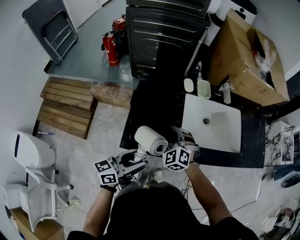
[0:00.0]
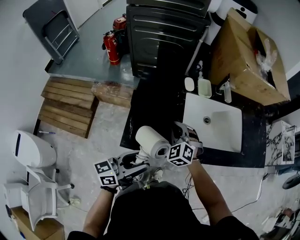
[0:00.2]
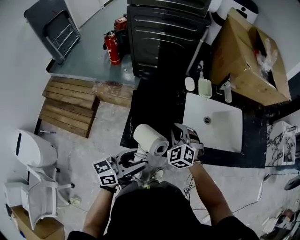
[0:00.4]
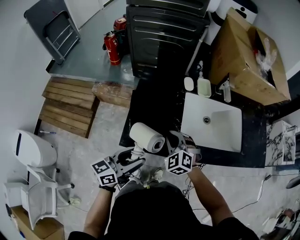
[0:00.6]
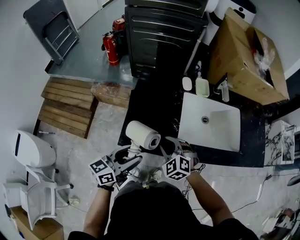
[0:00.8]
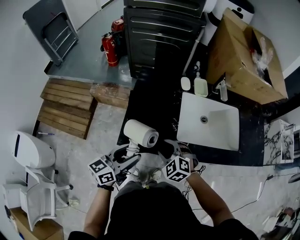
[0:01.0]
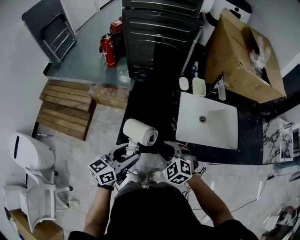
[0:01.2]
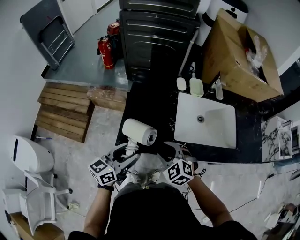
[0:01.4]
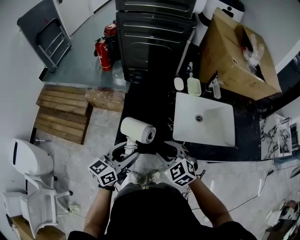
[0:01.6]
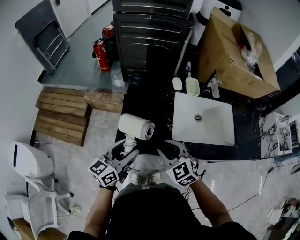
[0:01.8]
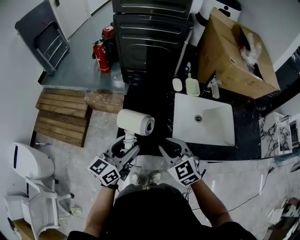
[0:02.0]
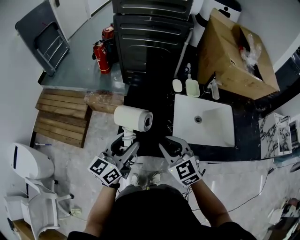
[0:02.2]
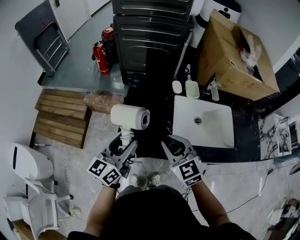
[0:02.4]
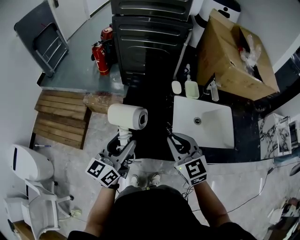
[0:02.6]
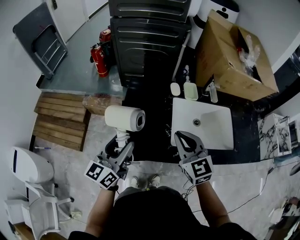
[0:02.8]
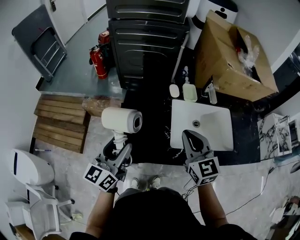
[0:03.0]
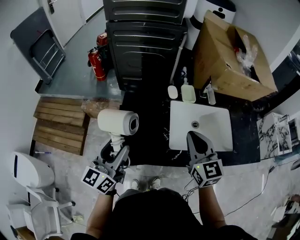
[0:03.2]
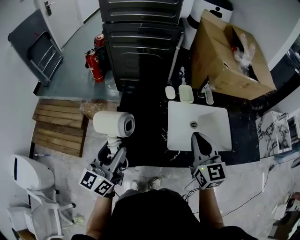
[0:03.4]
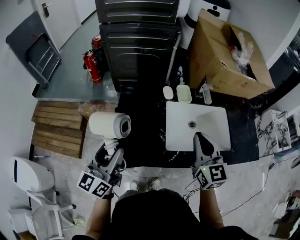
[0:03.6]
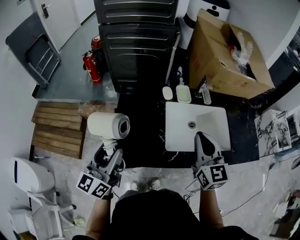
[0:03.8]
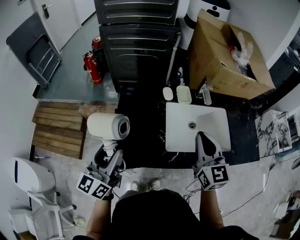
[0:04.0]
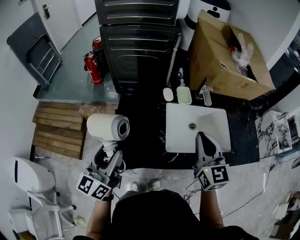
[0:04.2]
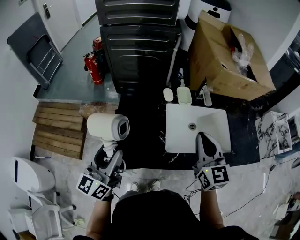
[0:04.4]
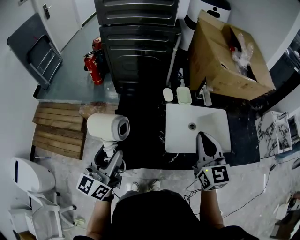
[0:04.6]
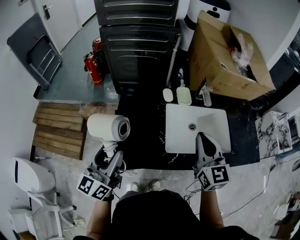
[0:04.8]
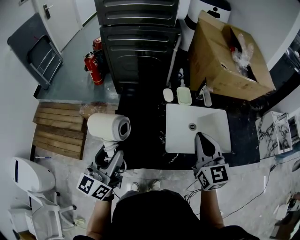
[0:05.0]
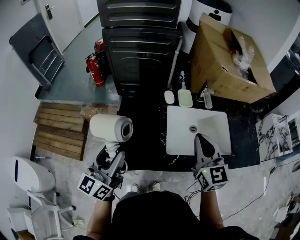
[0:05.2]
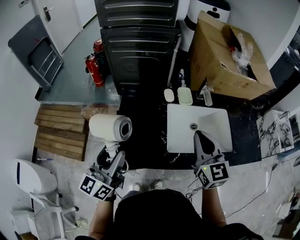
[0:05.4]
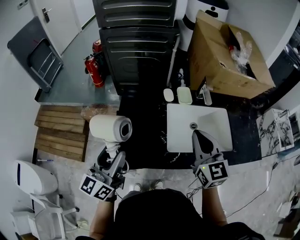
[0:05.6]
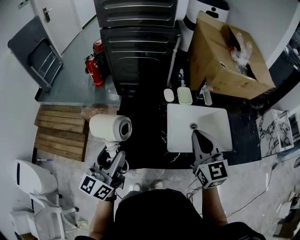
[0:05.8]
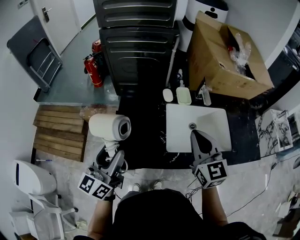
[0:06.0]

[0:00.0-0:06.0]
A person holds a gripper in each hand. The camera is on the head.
0:00.0 to 0:01.6: The right gripper travels backward by roughly 10 cm, rotates about 20 degrees, and opens its fingers.
0:01.6 to 0:03.0: The right gripper heads upward, to the right and forward, covering some 20 cm, changes its angle by approximately 40 degrees, and closes its fingers. The left gripper is displaced upward and forward by some 10 cm.
0:03.0 to 0:04.4: The right gripper heads to the right, covering about 10 cm.
0:04.4 to 0:06.0: The grippers stay close to where they were, moving slightly.

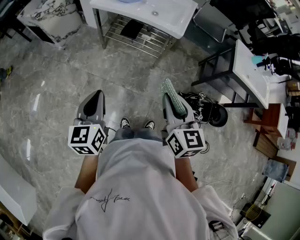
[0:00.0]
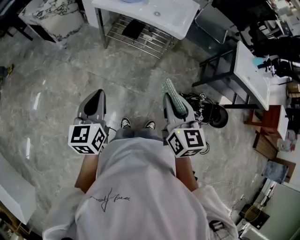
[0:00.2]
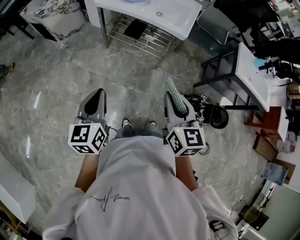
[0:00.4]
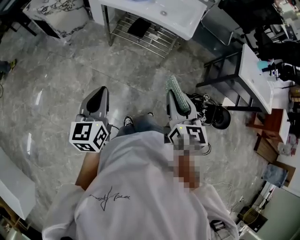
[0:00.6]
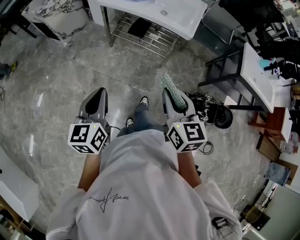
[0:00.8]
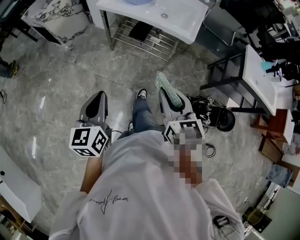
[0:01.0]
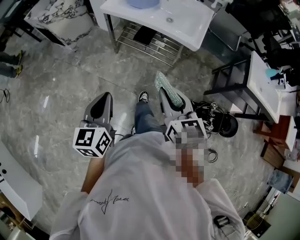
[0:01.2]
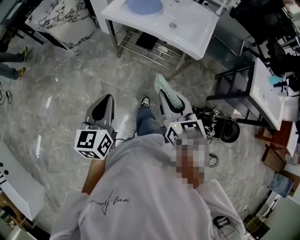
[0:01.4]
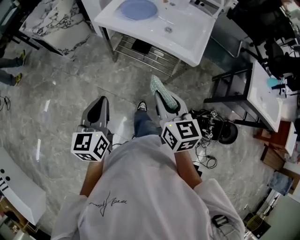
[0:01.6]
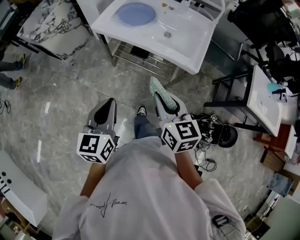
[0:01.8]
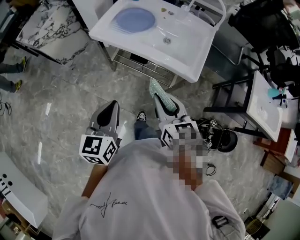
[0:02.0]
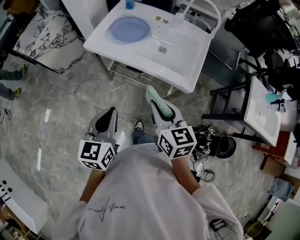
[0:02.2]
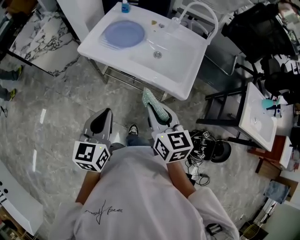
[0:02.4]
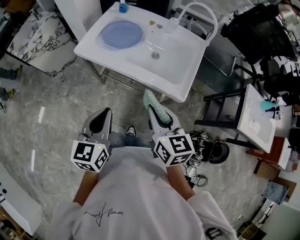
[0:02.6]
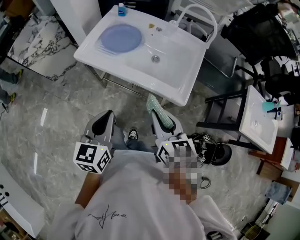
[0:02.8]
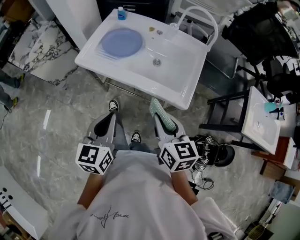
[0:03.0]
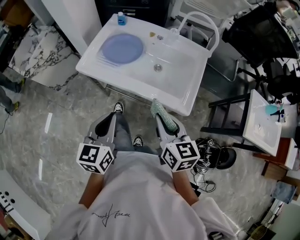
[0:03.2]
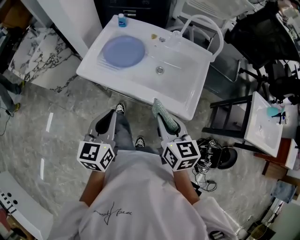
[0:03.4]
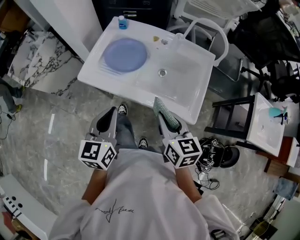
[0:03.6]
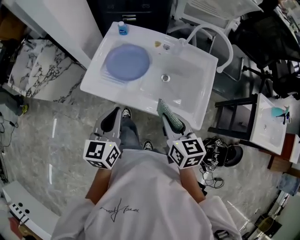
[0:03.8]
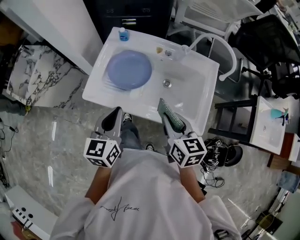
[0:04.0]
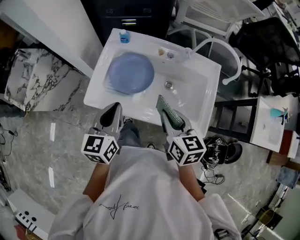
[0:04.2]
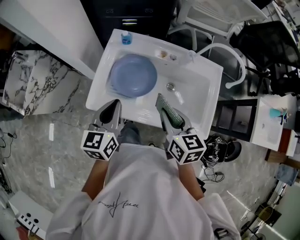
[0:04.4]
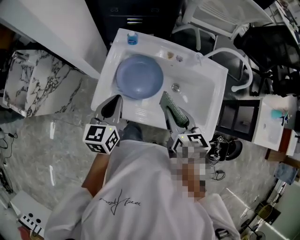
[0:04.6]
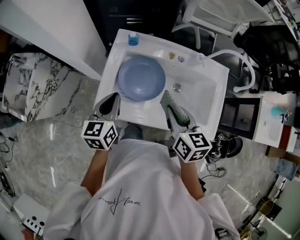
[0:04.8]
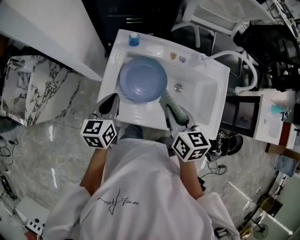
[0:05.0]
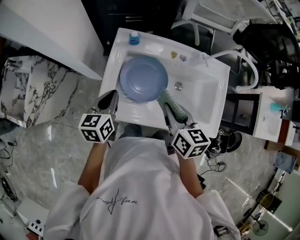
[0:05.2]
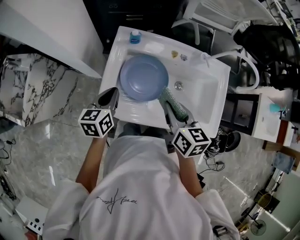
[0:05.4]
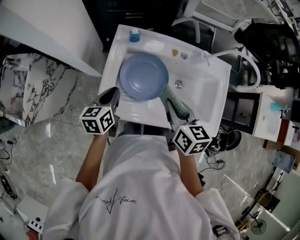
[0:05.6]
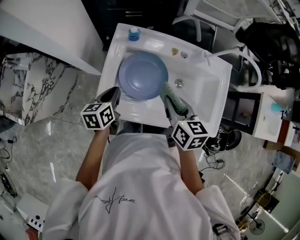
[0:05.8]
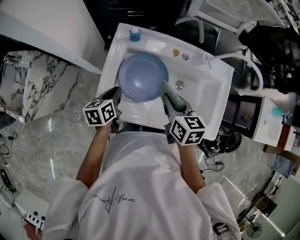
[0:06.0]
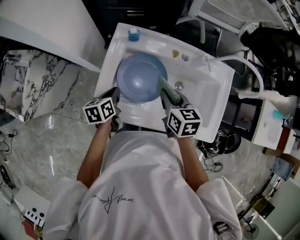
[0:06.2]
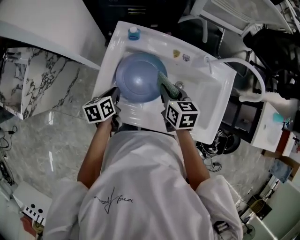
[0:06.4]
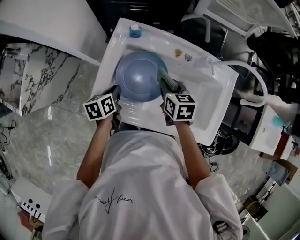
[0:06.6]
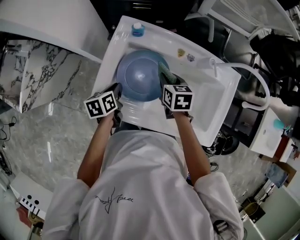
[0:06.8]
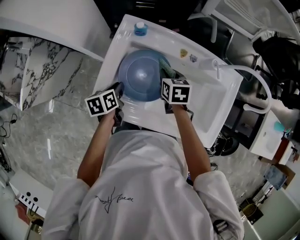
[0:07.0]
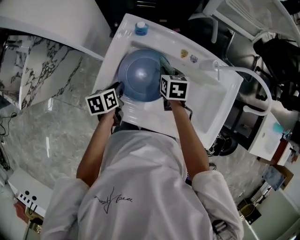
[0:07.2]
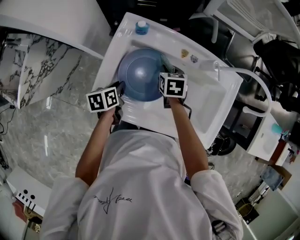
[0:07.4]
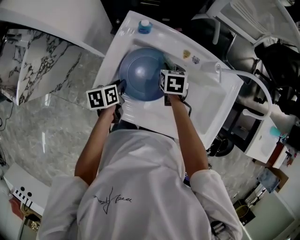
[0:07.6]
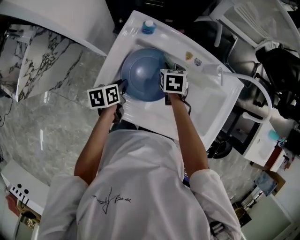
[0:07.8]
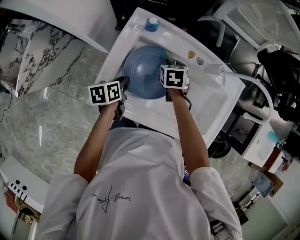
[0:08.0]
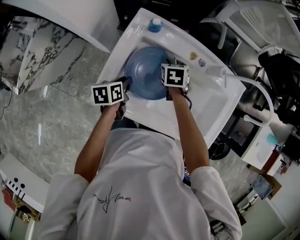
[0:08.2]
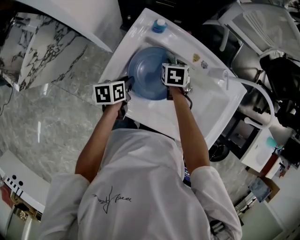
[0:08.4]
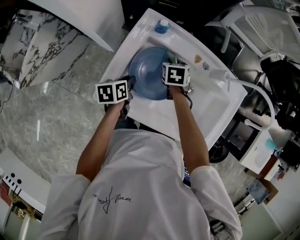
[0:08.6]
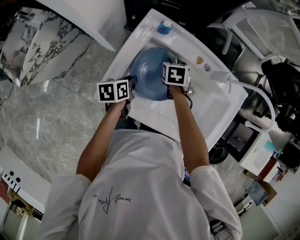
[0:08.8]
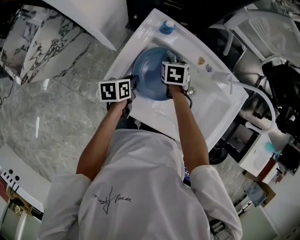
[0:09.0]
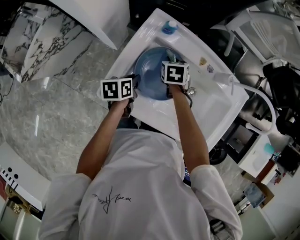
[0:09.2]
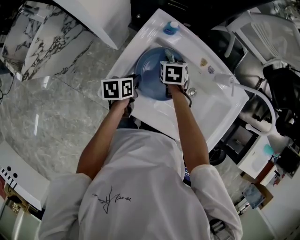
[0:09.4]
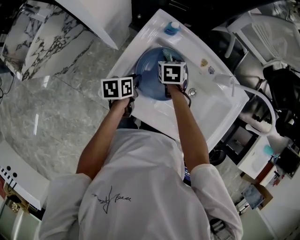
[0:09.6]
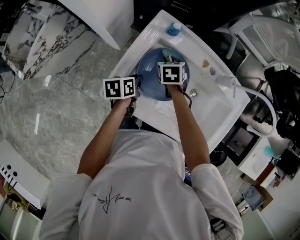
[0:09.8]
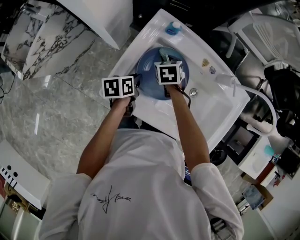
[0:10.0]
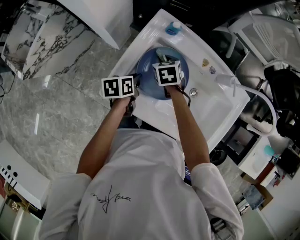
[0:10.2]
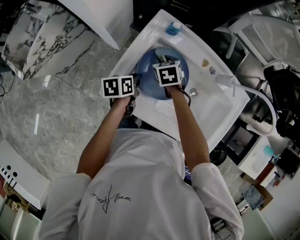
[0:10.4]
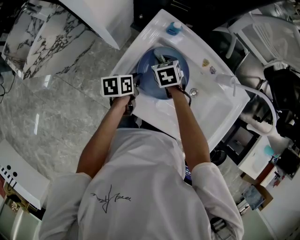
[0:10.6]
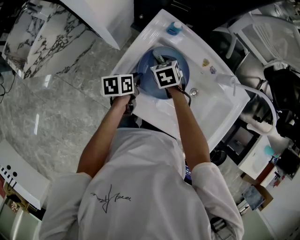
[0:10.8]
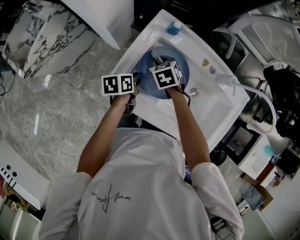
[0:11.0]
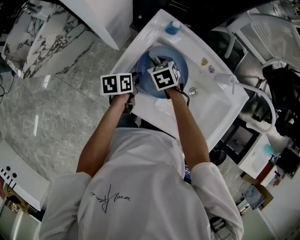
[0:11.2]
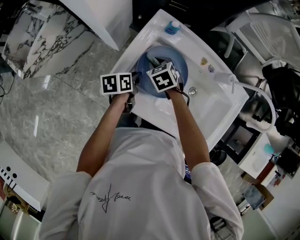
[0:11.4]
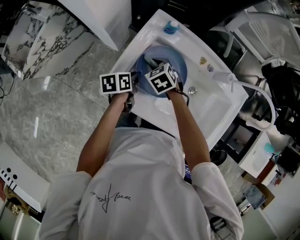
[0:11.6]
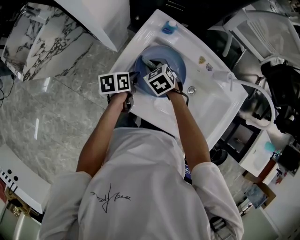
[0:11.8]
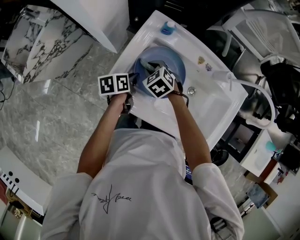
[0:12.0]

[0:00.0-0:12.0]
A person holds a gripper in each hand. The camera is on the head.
0:00.0 to 0:01.6: The grippers both shift forward by approximately 20 cm.
0:01.6 to 0:03.0: The grippers both shift forward and to the right by some 20 cm.
0:03.0 to 0:04.4: The right gripper goes roughly 25 cm forward and to the left. Meanwhile the left gripper moves forward, roughly 30 cm.
0:04.4 to 0:06.0: The left gripper shifts roughly 20 cm downward, forward and to the left, and swivels roughly 30 degrees, while the right gripper shifts some 10 cm forward and downward.
0:06.0 to 0:07.6: The left gripper goes approximately 5 cm downward, while the right gripper is displaced downward and forward by about 20 cm, and swivels about 30 degrees.
0:07.6 to 0:09.0: The right gripper is displaced to the left by approximately 5 cm.
0:09.0 to 0:10.4: The right gripper is displaced to the left by about 5 cm.
0:10.4 to 0:12.0: The right gripper travels backward by roughly 5 cm, and changes its angle by roughly 20 degrees.

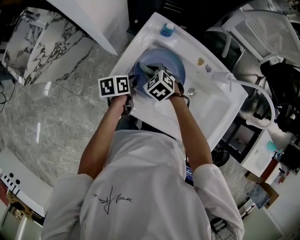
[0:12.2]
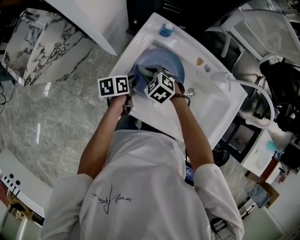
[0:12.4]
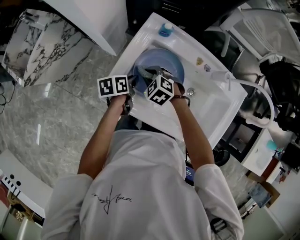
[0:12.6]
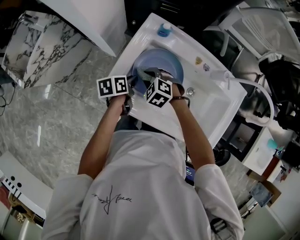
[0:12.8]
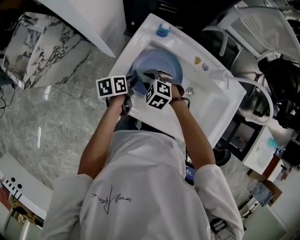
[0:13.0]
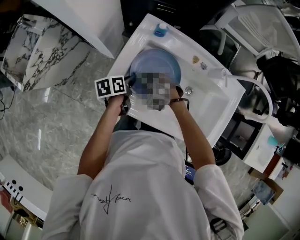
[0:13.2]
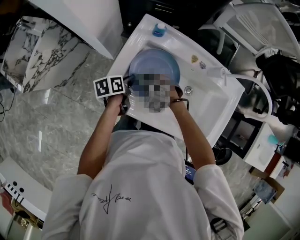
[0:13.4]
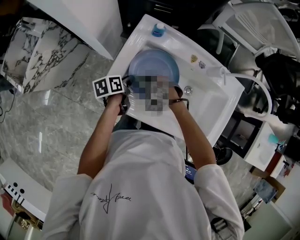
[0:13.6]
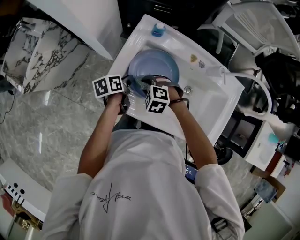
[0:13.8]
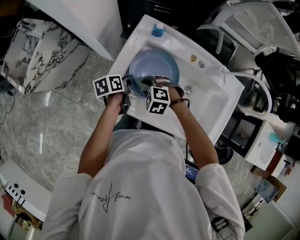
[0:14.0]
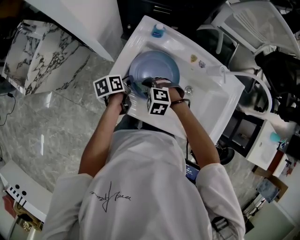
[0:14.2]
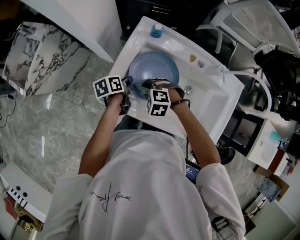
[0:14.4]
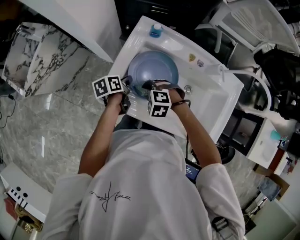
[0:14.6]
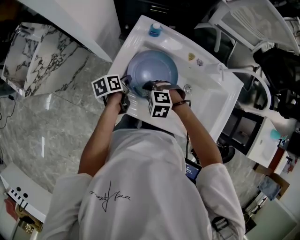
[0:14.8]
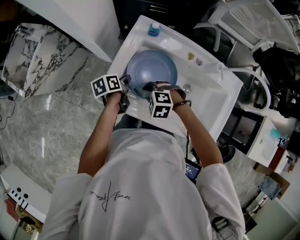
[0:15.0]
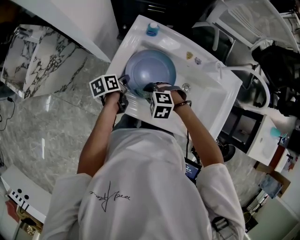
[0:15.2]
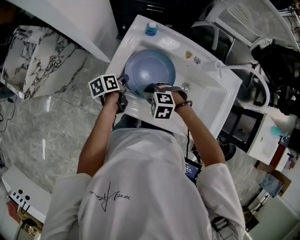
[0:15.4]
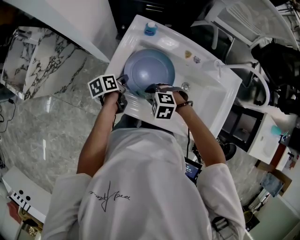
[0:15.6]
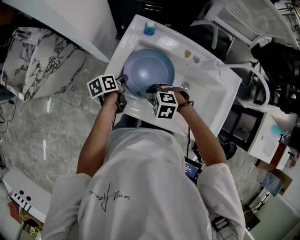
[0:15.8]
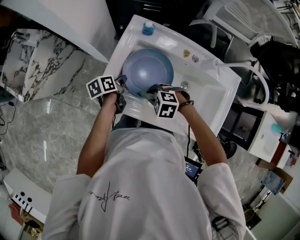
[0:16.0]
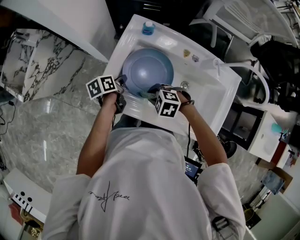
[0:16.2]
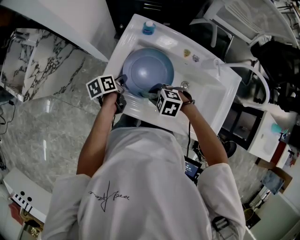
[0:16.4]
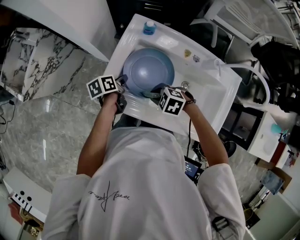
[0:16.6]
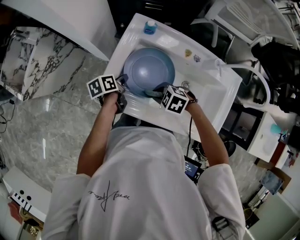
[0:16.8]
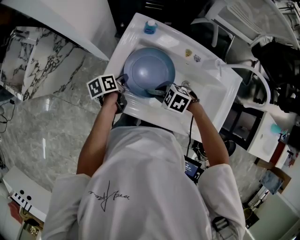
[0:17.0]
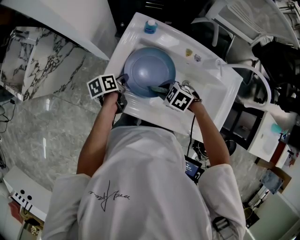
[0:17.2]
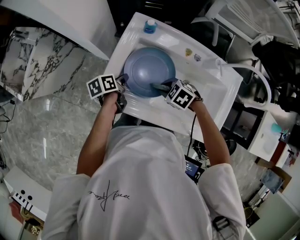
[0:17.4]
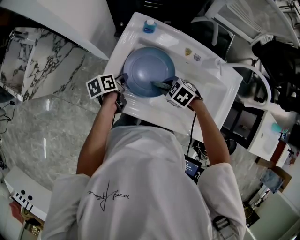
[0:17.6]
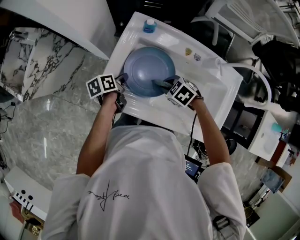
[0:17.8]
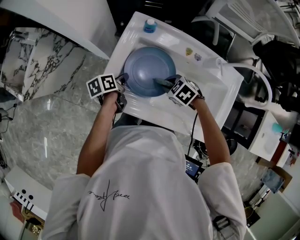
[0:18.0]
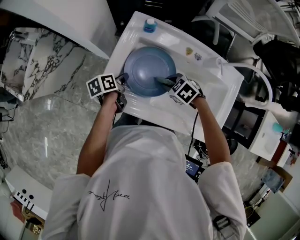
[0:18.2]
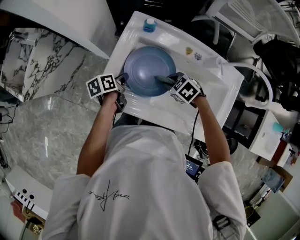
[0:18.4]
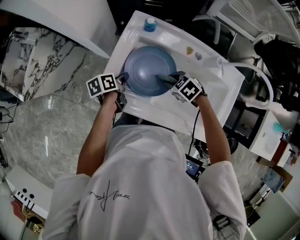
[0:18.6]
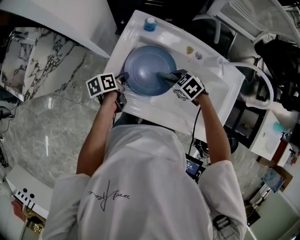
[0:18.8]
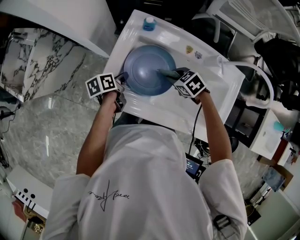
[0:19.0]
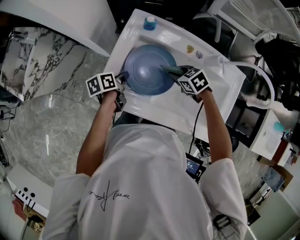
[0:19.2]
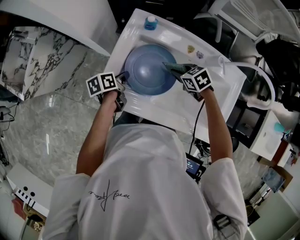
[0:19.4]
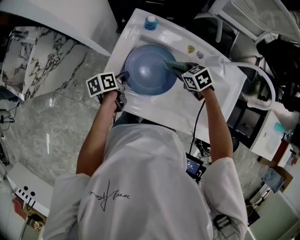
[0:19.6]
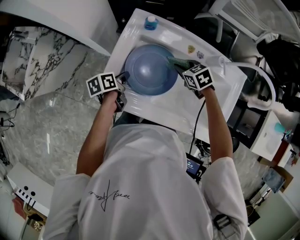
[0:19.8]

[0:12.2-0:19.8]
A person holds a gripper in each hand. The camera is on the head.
0:12.2 to 0:13.8: The right gripper travels backward by some 5 cm, and changes its angle by about 20 degrees.
0:13.8 to 0:15.2: The right gripper is displaced backward by some 5 cm.
0:15.2 to 0:16.8: The right gripper ends up some 5 cm from where it was, and turns by roughly 20 degrees.
0:16.8 to 0:18.2: The right gripper ends up roughly 10 cm from where it was.
0:18.2 to 0:19.8: The right gripper moves forward and to the right, approximately 10 cm, and changes its angle by some 20 degrees.
